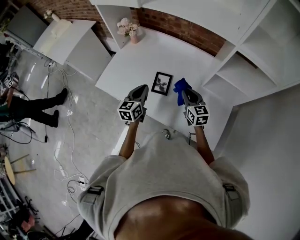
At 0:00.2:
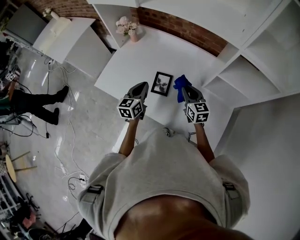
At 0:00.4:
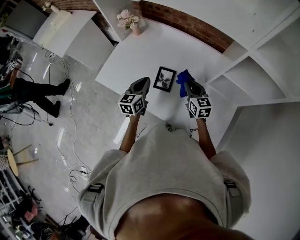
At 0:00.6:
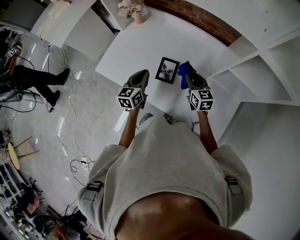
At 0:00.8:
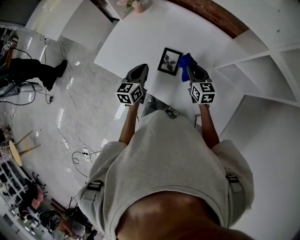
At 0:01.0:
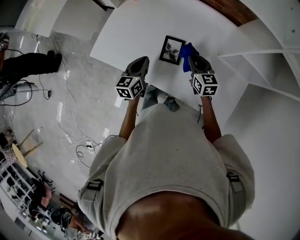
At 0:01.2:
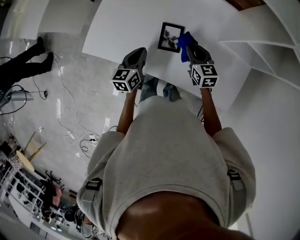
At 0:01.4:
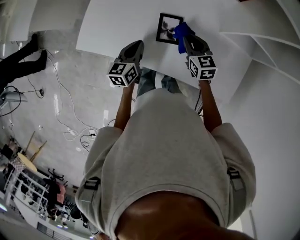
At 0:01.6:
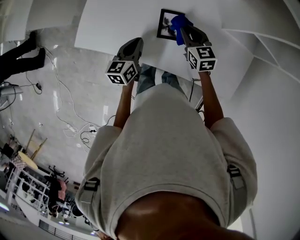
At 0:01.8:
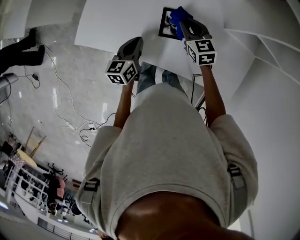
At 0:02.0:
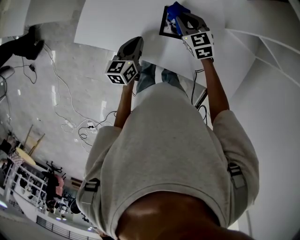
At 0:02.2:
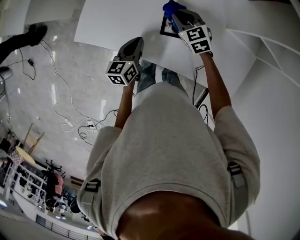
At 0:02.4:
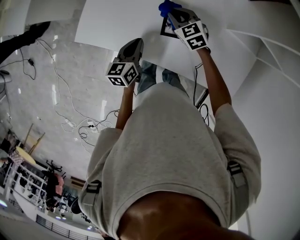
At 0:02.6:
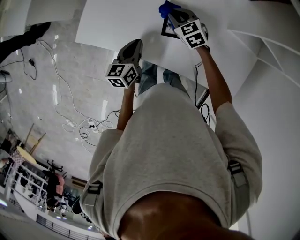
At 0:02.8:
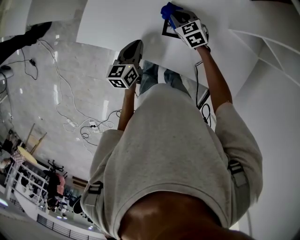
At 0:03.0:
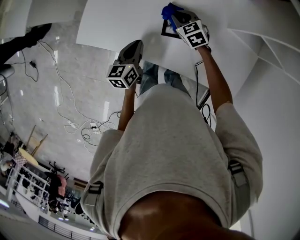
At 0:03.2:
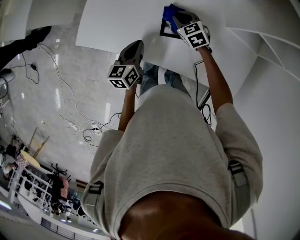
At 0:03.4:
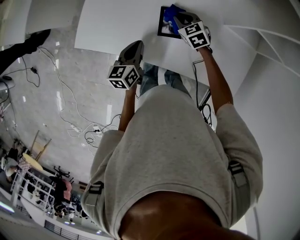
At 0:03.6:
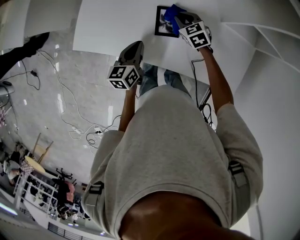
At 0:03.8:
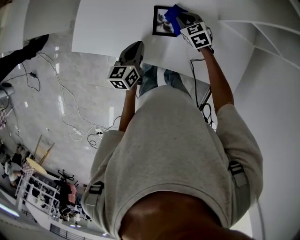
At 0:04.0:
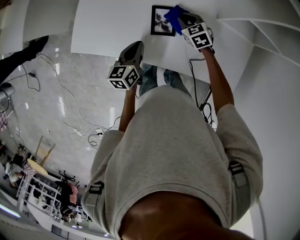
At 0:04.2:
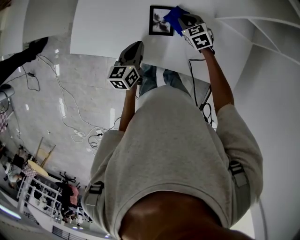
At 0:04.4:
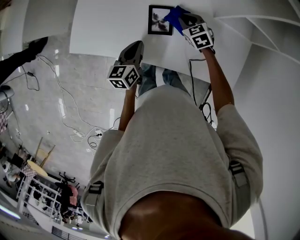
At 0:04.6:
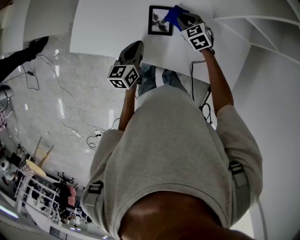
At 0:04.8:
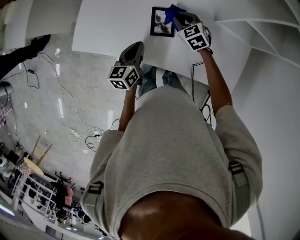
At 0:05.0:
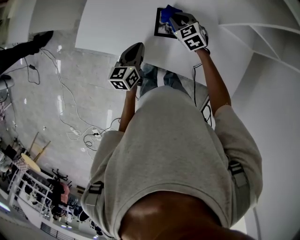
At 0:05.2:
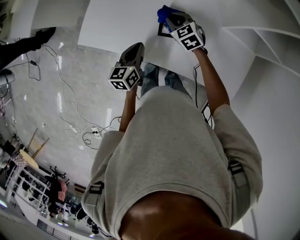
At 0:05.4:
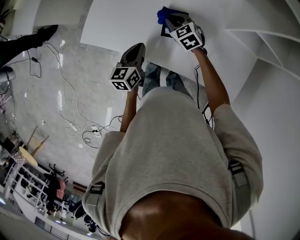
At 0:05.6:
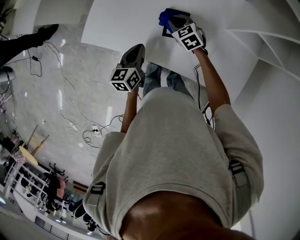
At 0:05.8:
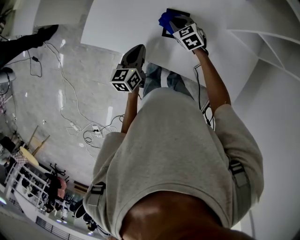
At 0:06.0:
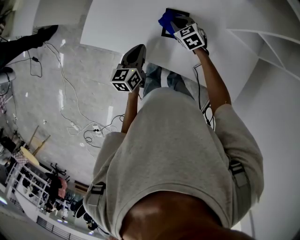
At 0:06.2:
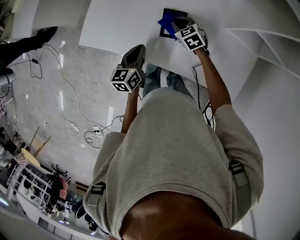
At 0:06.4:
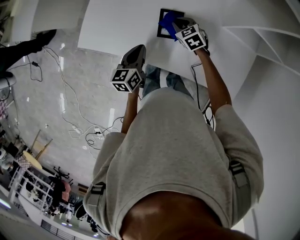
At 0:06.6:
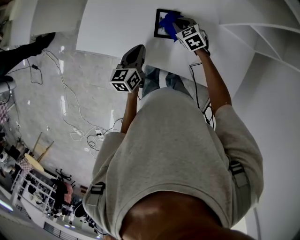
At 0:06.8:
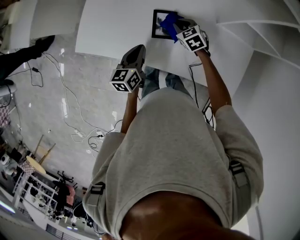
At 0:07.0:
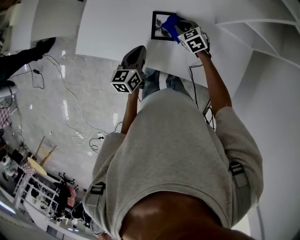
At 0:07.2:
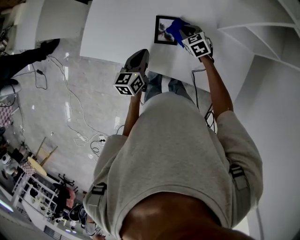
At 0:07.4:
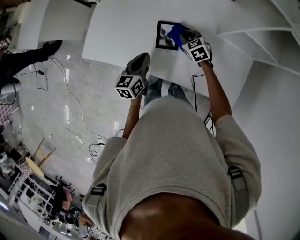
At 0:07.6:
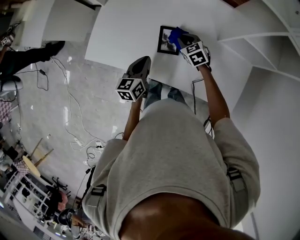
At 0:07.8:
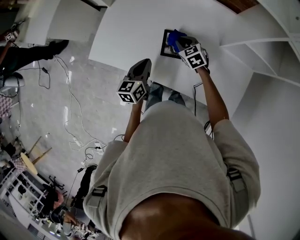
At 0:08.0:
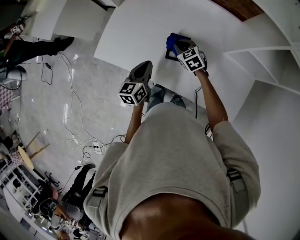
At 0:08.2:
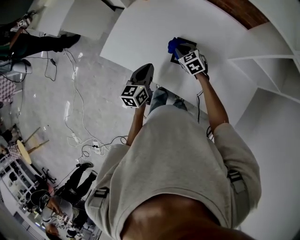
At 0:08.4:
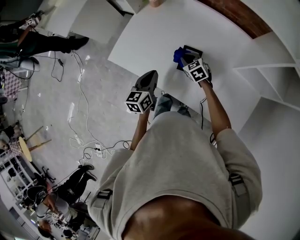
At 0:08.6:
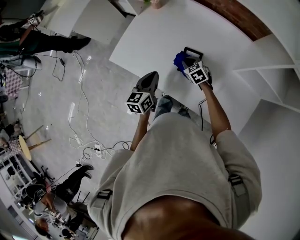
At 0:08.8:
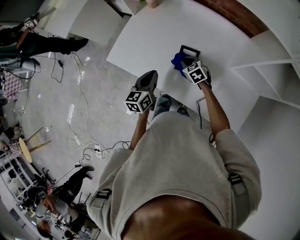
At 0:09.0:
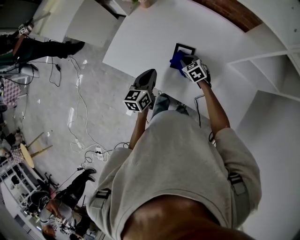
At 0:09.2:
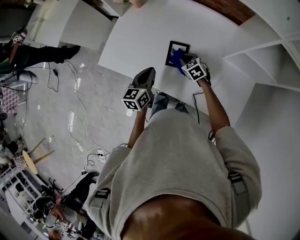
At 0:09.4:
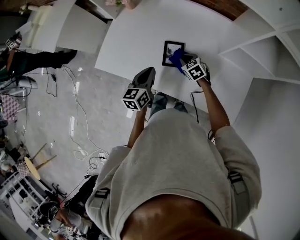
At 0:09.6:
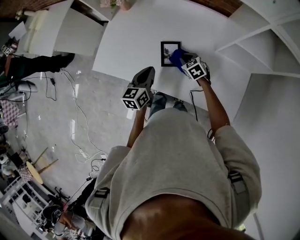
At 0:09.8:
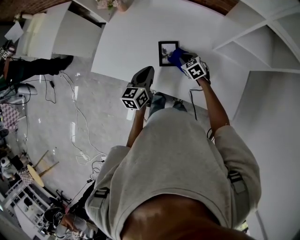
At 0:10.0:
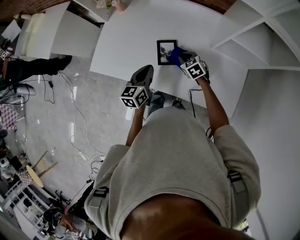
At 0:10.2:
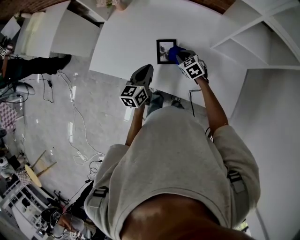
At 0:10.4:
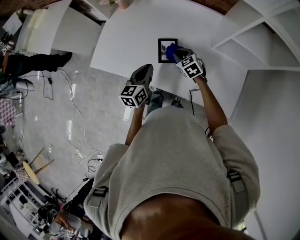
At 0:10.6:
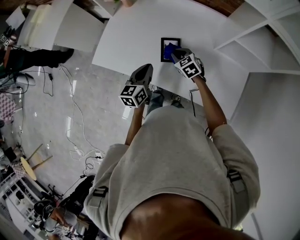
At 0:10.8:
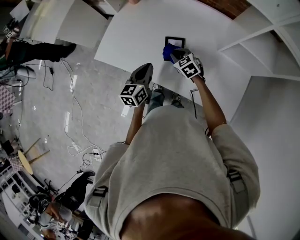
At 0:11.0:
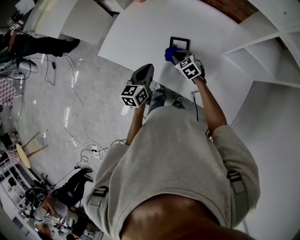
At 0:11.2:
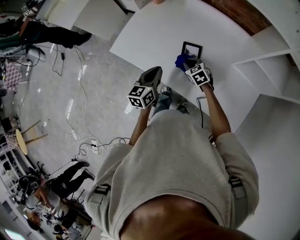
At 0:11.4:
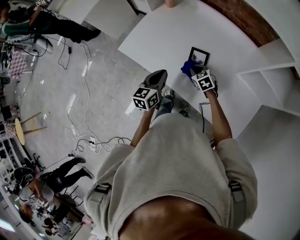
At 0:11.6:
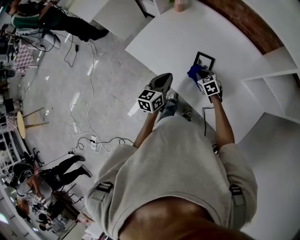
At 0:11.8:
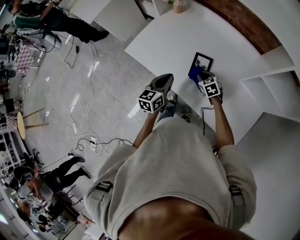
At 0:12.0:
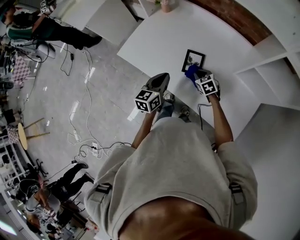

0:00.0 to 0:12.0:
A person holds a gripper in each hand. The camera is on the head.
0:00.0 to 0:01.6: The left gripper travels downward and to the left by roughly 15 cm. Meanwhile the right gripper heads downward, to the left and forward, covering approximately 15 cm.
0:01.6 to 0:03.0: The right gripper travels forward, downward and to the left by roughly 10 cm, and swivels approximately 20 degrees.
0:03.0 to 0:04.4: The right gripper travels to the right by some 10 cm. Meanwhile the left gripper heads to the right, covering approximately 5 cm.
0:04.4 to 0:06.0: The right gripper shifts about 10 cm to the left, while the left gripper is displaced to the left by approximately 5 cm.
0:06.0 to 0:07.6: The right gripper moves to the right, some 5 cm, while the left gripper moves about 5 cm.
0:07.6 to 0:09.0: The right gripper heads to the left, covering approximately 5 cm.
0:09.0 to 0:10.4: The right gripper ends up some 5 cm from where it was. Meanwhile the left gripper goes approximately 5 cm to the right.
0:10.4 to 0:12.0: The right gripper changes place by some 5 cm.

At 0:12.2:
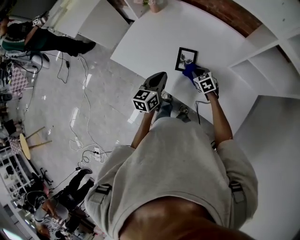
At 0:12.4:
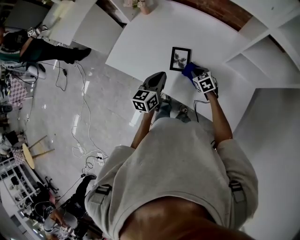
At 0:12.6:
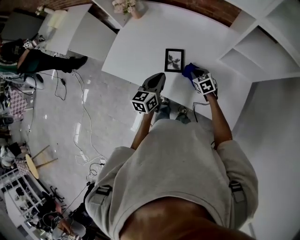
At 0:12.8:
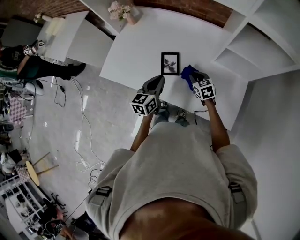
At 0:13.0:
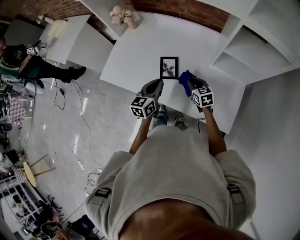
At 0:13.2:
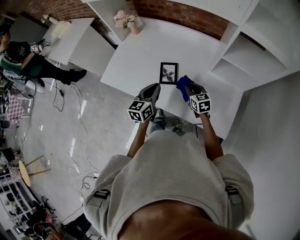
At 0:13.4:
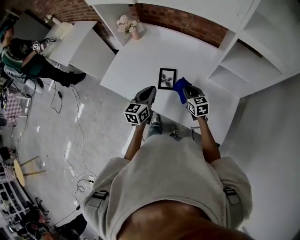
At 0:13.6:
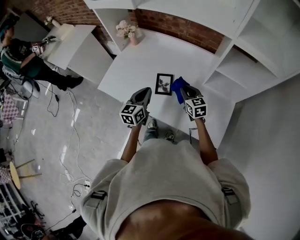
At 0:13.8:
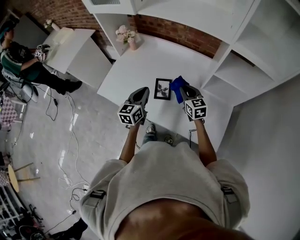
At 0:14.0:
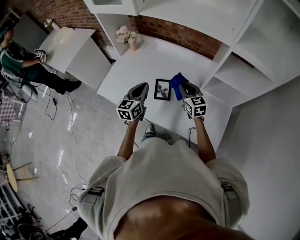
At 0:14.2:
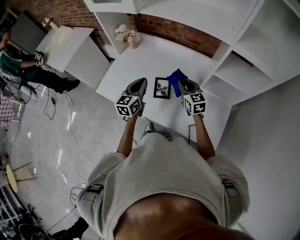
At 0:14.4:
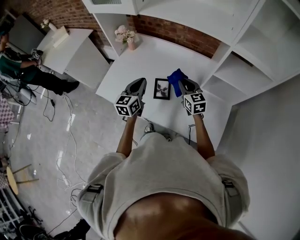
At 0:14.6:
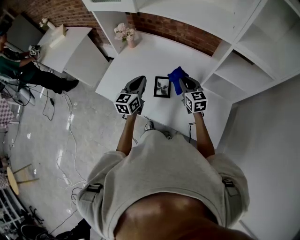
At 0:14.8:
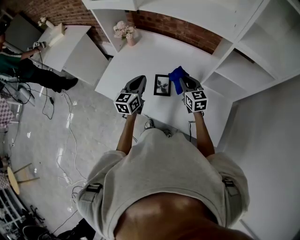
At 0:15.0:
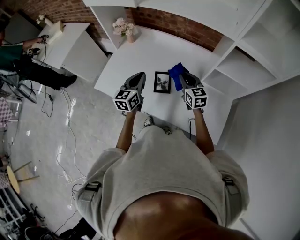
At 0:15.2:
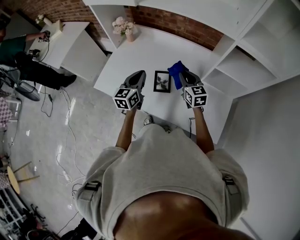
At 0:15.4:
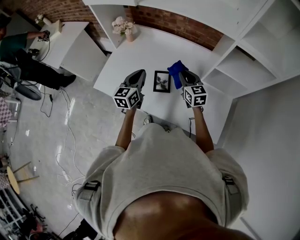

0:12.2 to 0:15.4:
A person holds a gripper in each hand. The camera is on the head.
0:12.2 to 0:13.8: The right gripper travels upward by approximately 20 cm, and turns by roughly 30 degrees; the left gripper shifts approximately 5 cm upward.
0:13.8 to 0:15.4: The left gripper moves forward, approximately 5 cm.

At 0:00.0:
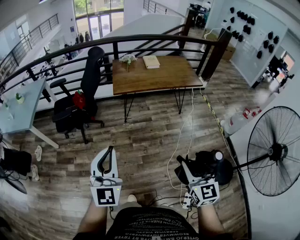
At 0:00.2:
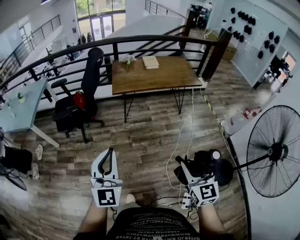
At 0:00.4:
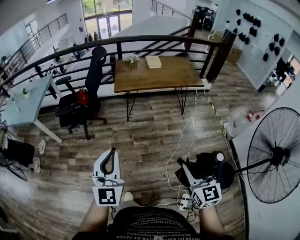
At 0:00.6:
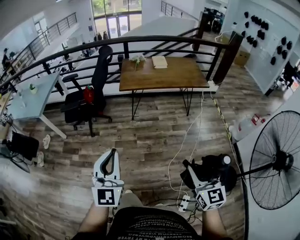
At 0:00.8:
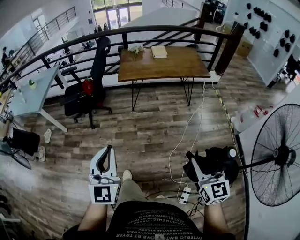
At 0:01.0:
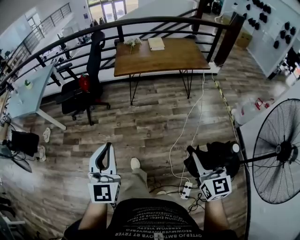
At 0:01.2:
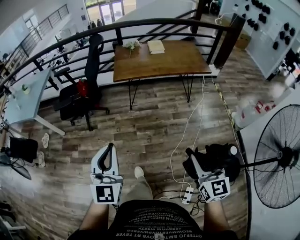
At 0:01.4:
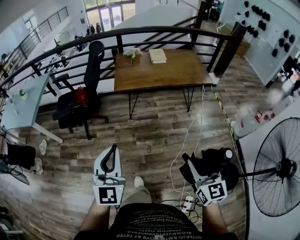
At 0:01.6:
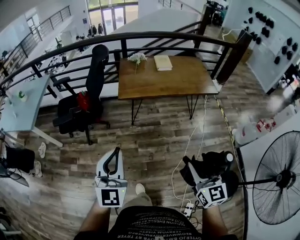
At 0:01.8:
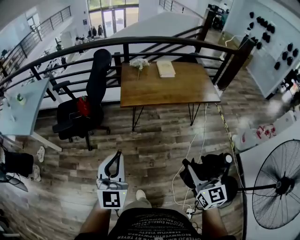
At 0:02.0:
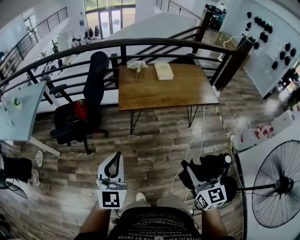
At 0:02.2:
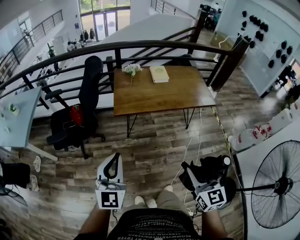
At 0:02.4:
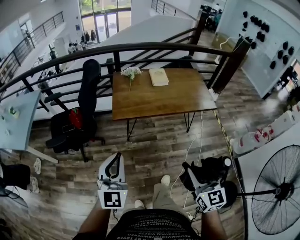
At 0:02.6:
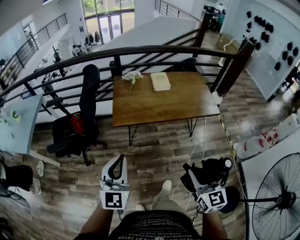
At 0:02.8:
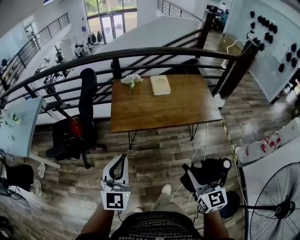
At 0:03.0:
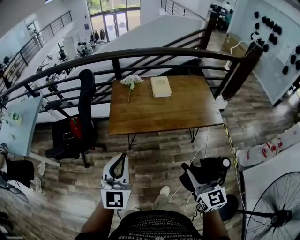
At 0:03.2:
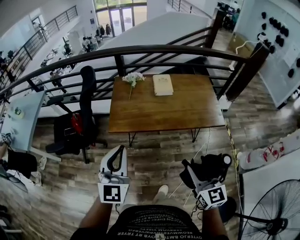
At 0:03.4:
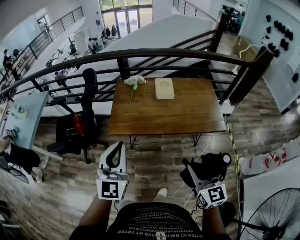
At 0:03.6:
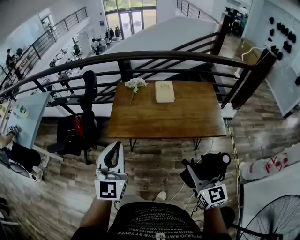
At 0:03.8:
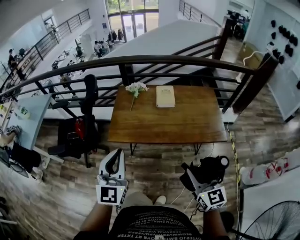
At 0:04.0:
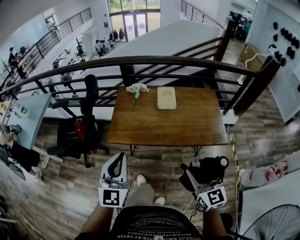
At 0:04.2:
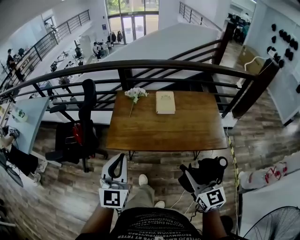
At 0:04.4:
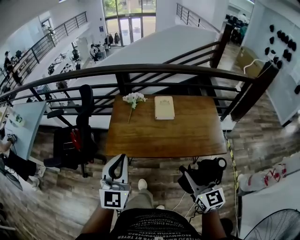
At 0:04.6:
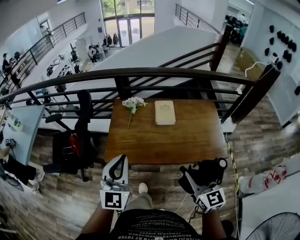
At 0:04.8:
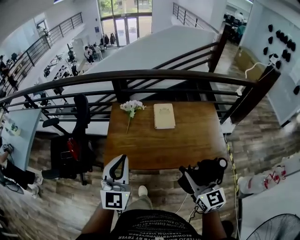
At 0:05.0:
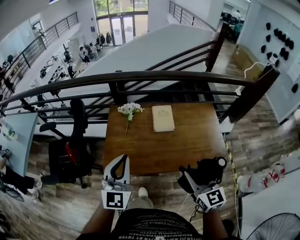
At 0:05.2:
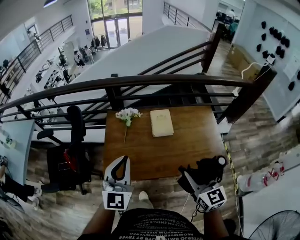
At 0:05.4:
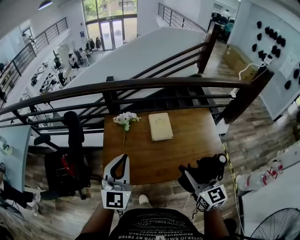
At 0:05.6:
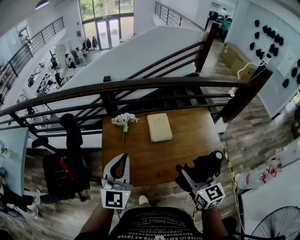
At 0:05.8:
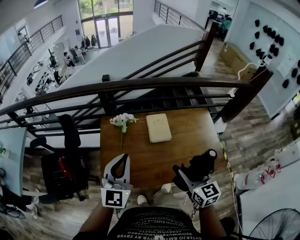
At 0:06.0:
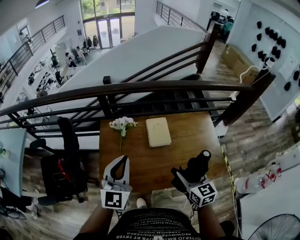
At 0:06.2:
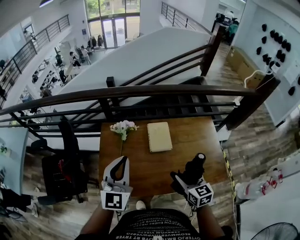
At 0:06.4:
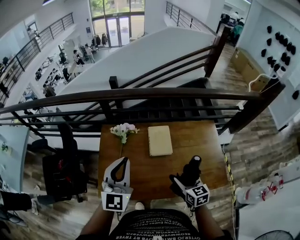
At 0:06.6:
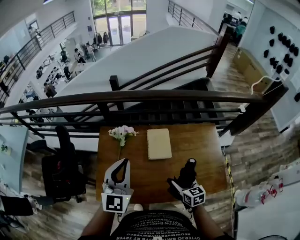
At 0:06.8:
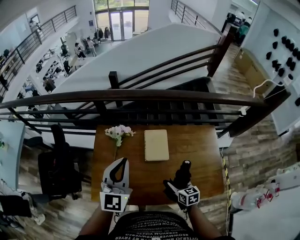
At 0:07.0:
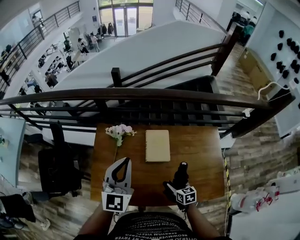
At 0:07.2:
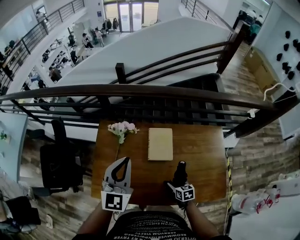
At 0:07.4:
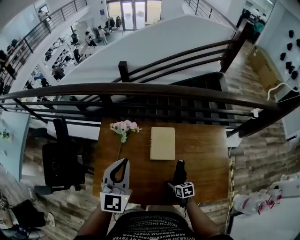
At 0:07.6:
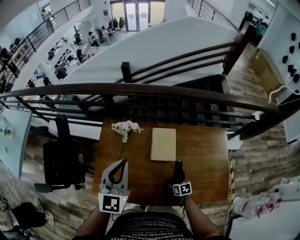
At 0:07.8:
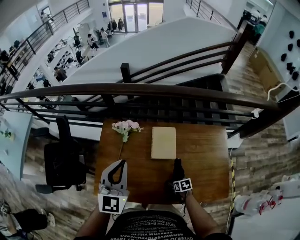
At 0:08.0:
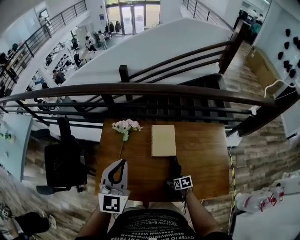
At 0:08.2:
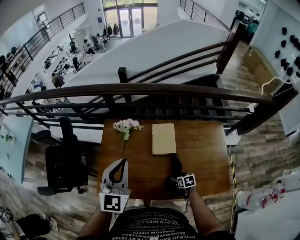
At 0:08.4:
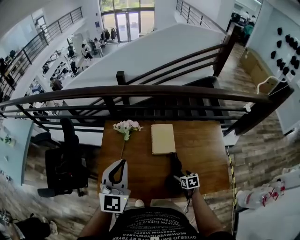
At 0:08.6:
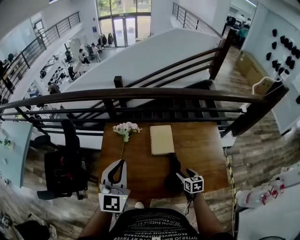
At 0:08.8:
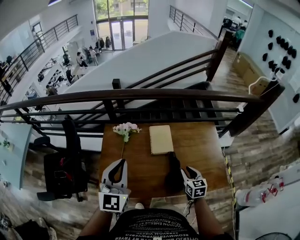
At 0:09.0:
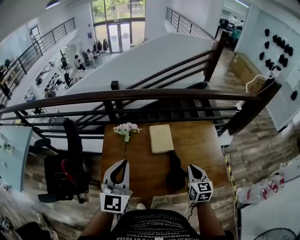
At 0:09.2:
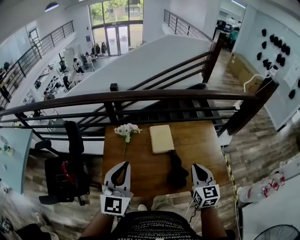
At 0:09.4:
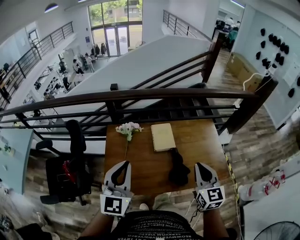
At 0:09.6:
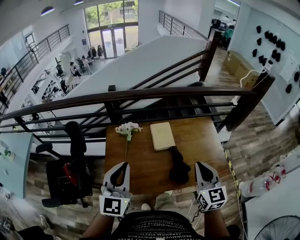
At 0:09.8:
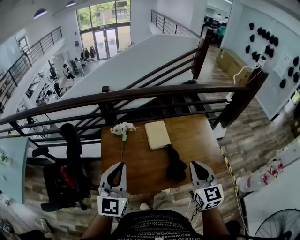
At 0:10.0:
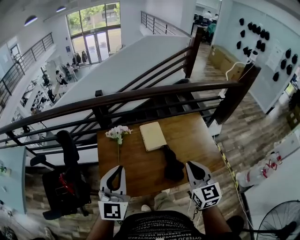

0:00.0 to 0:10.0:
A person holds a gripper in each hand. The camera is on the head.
0:00.0 to 0:01.4: The two grippers go approximately 10 cm to the right and forward.
0:01.4 to 0:02.8: Both grippers move forward, some 30 cm.
0:02.8 to 0:04.2: Both grippers move forward and to the right, about 20 cm.
0:04.2 to 0:05.8: Both grippers travel together forward, some 25 cm.
0:05.8 to 0:07.2: The right gripper goes approximately 35 cm downward, and tips its fingers downward by some 30 degrees. Meanwhile the left gripper moves forward and to the right, approximately 15 cm.
0:07.2 to 0:08.6: The left gripper is displaced backward and to the left by approximately 10 cm, while the right gripper heads upward, covering about 10 cm.
0:08.6 to 0:10.0: The left gripper goes roughly 10 cm backward; the right gripper is displaced upward by approximately 30 cm, tips its fingers upward by about 30 degrees, and closes its fingers.
